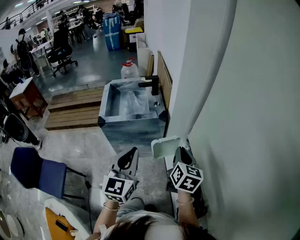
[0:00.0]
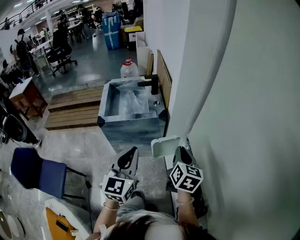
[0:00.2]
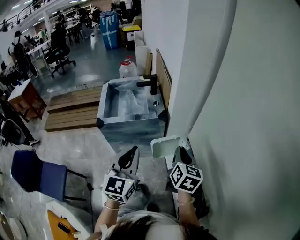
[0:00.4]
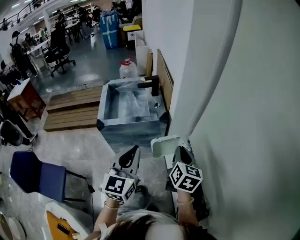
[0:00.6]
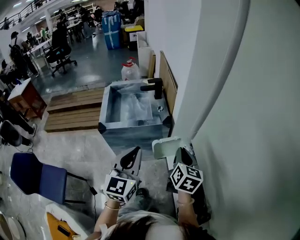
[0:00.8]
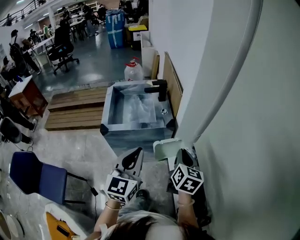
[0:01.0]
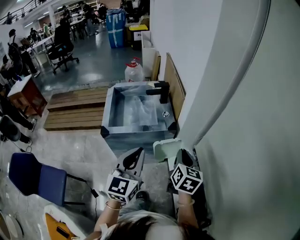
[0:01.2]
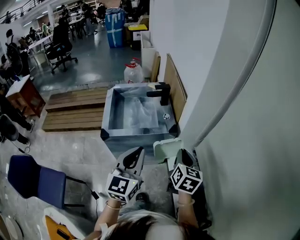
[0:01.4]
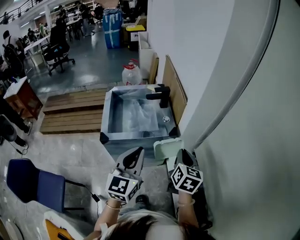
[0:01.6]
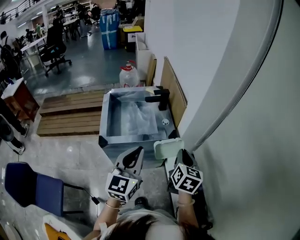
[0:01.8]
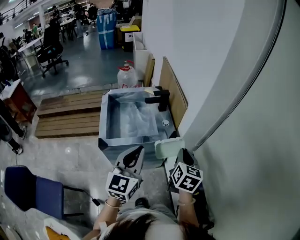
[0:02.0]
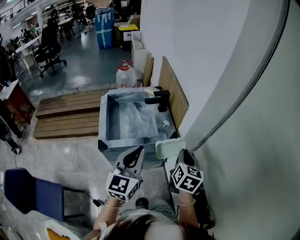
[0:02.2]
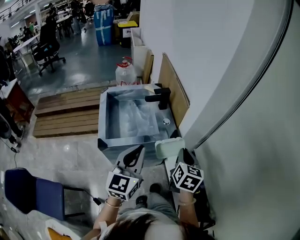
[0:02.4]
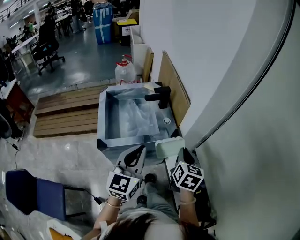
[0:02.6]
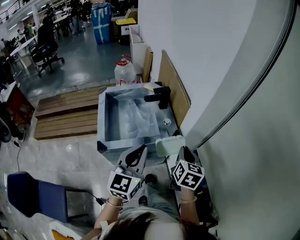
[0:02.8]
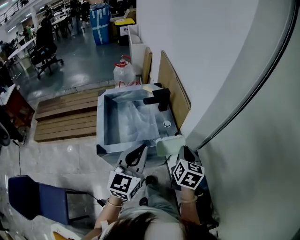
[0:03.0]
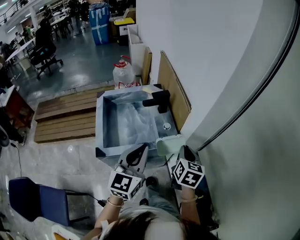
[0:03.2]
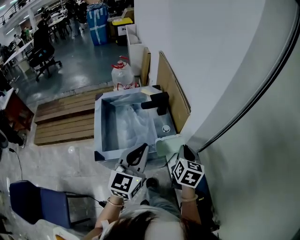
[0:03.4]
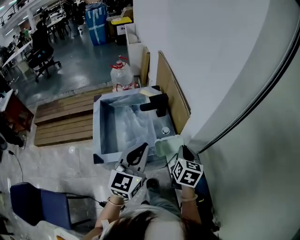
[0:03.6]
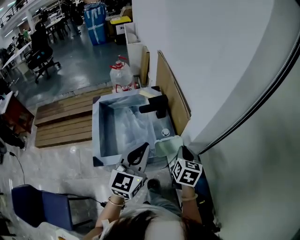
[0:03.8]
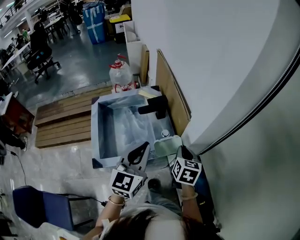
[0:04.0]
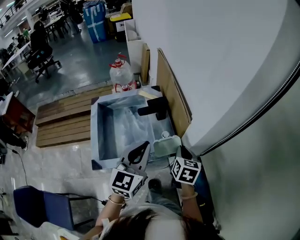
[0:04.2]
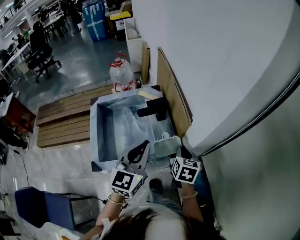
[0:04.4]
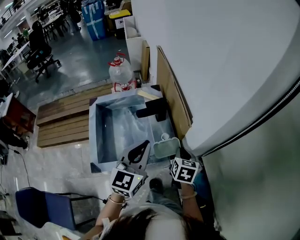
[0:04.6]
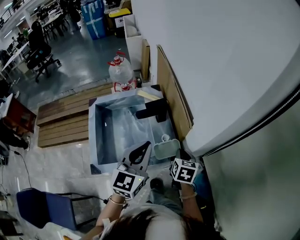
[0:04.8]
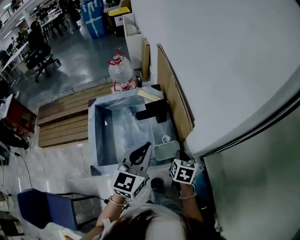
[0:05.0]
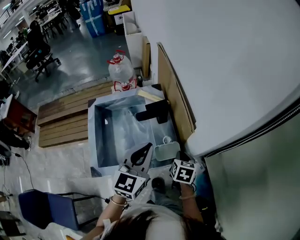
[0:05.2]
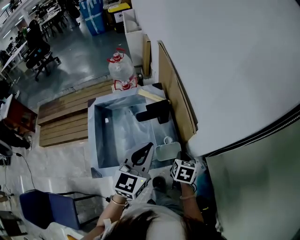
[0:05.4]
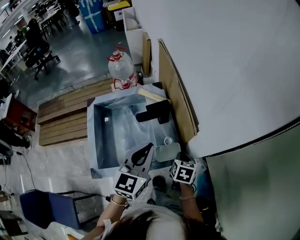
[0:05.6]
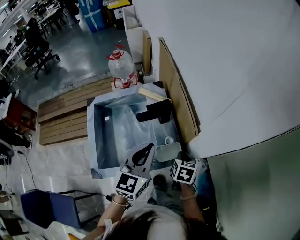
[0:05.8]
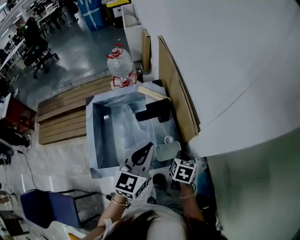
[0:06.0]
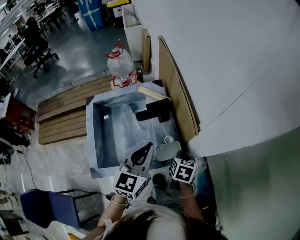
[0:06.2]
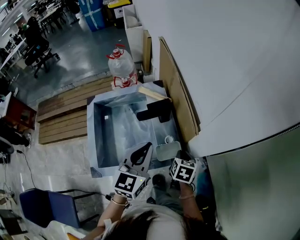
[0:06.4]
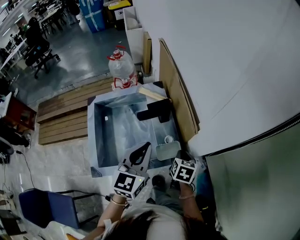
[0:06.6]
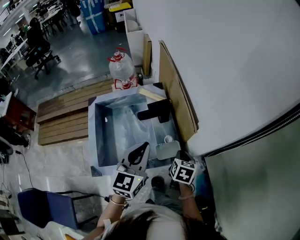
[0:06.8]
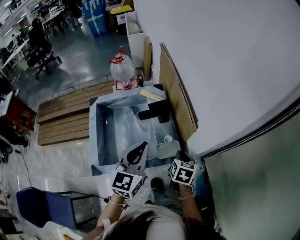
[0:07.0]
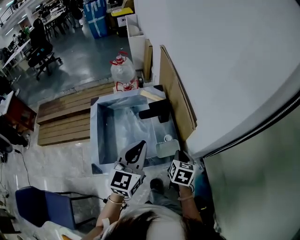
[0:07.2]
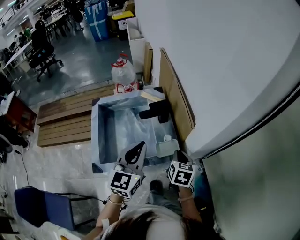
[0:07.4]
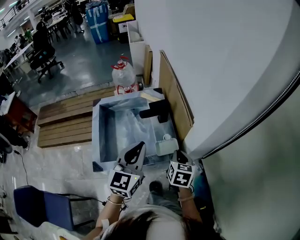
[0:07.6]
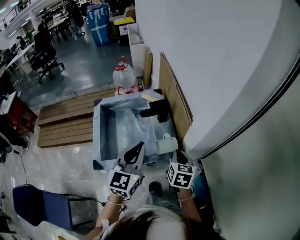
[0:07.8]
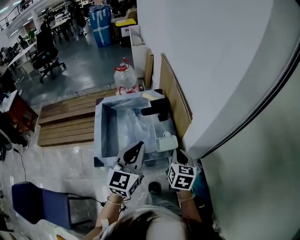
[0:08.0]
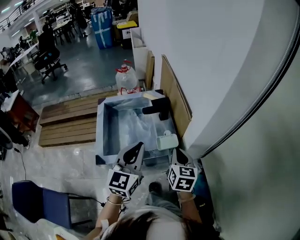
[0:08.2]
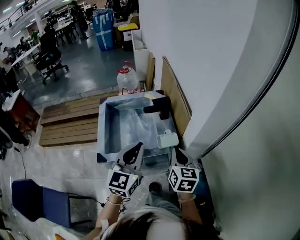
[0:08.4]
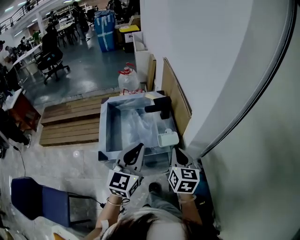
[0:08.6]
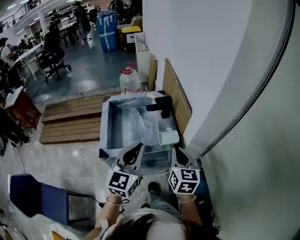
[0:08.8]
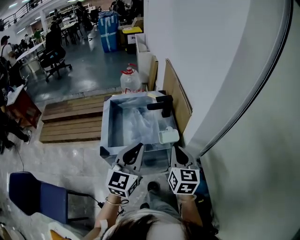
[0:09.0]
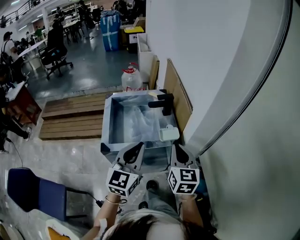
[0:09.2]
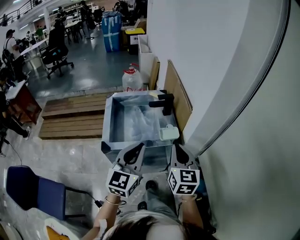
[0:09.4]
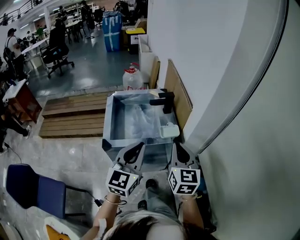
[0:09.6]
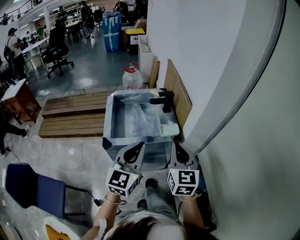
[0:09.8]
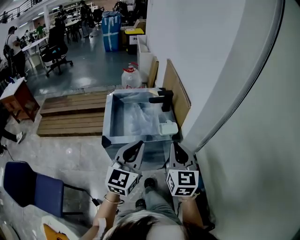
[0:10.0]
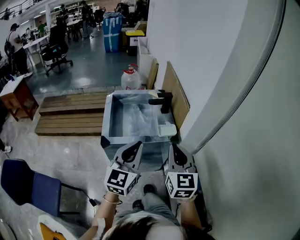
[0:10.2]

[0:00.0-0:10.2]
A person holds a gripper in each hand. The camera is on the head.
0:00.0 to 0:01.4: Both grippers move forward and to the left, approximately 15 cm.
0:01.4 to 0:03.0: The right gripper moves forward, roughly 10 cm. Meanwhile the left gripper moves forward and to the left, about 15 cm.
0:03.0 to 0:04.4: The right gripper goes approximately 15 cm forward and downward; the left gripper goes approximately 15 cm forward.
0:04.4 to 0:05.8: The left gripper travels forward and downward by approximately 10 cm. Meanwhile the right gripper heads downward, covering some 10 cm.
0:05.8 to 0:07.2: The left gripper moves some 5 cm, while the right gripper shifts approximately 5 cm upward.
0:07.2 to 0:08.8: The right gripper is displaced upward and backward by approximately 20 cm, and turns by about 30 degrees. The left gripper travels backward by about 15 cm.
0:08.8 to 0:10.2: The left gripper shifts some 10 cm backward. Meanwhile the right gripper moves backward and upward, some 10 cm.

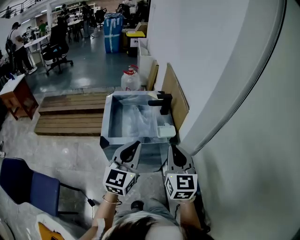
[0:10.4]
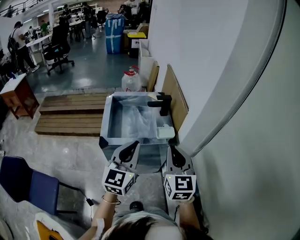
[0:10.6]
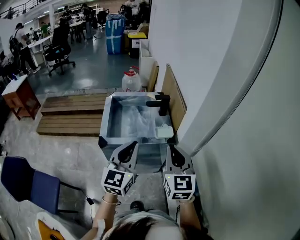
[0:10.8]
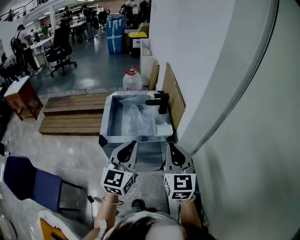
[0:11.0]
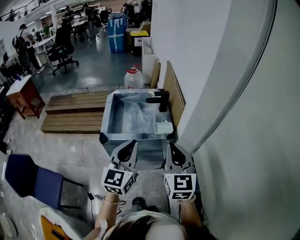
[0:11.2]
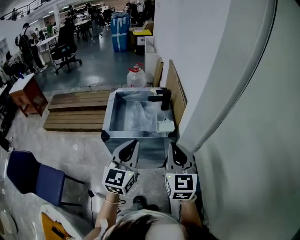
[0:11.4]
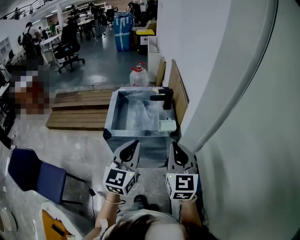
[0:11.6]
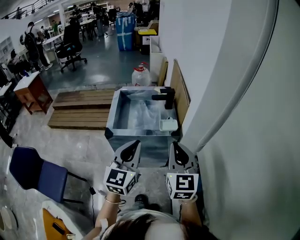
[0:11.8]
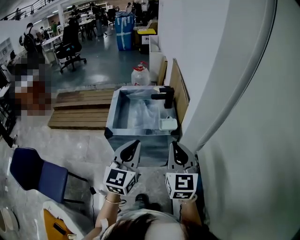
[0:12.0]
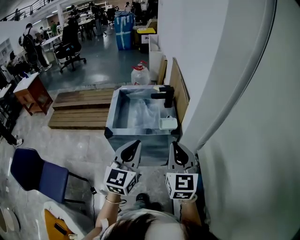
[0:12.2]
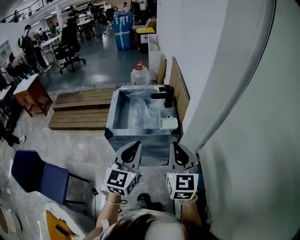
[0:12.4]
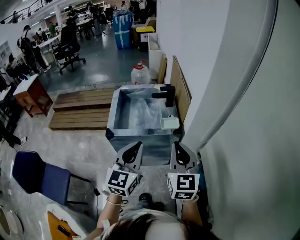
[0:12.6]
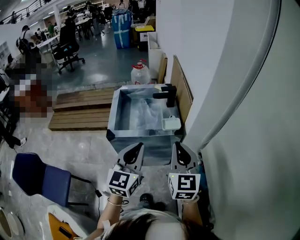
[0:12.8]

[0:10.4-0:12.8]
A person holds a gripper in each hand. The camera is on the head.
0:10.4 to 0:11.6: The left gripper moves roughly 5 cm; the right gripper ends up approximately 5 cm from where it was.
0:11.6 to 0:12.8: The grippers make only small movements.

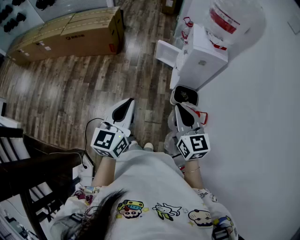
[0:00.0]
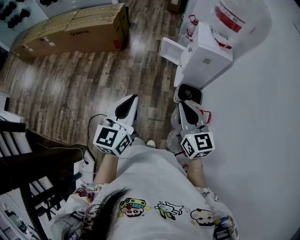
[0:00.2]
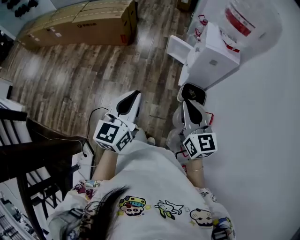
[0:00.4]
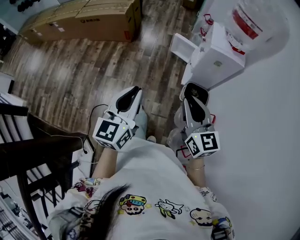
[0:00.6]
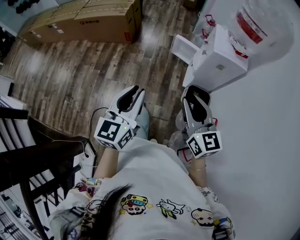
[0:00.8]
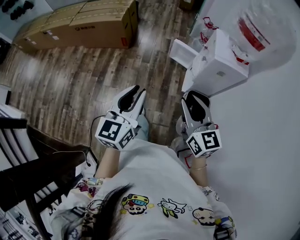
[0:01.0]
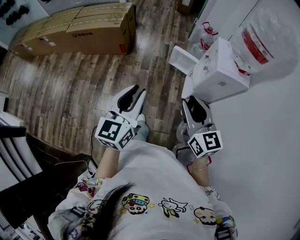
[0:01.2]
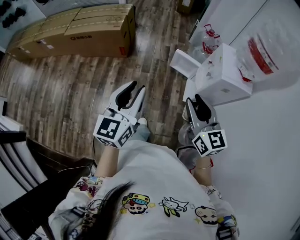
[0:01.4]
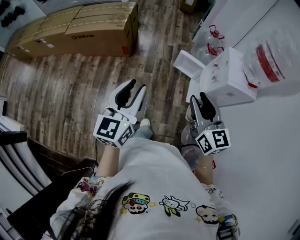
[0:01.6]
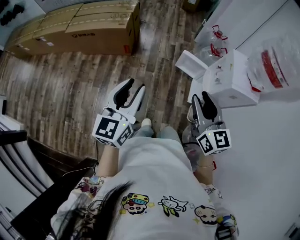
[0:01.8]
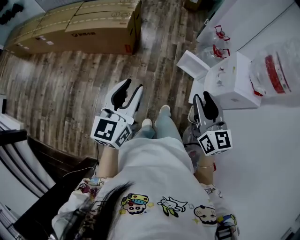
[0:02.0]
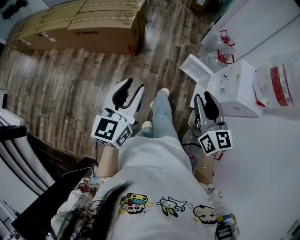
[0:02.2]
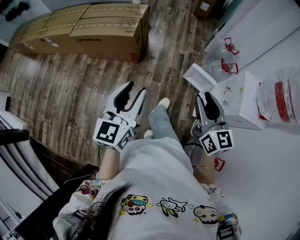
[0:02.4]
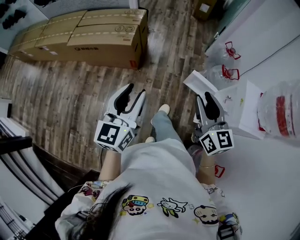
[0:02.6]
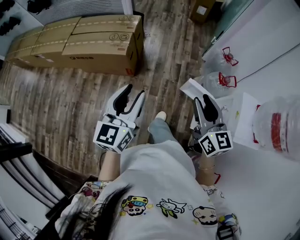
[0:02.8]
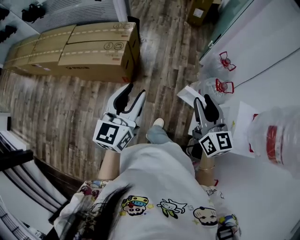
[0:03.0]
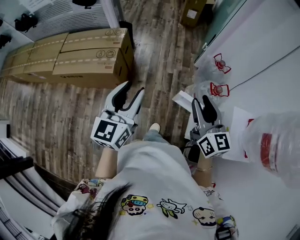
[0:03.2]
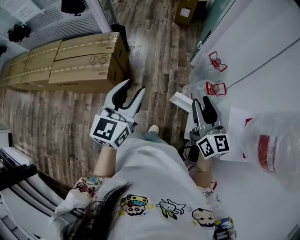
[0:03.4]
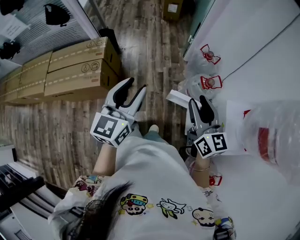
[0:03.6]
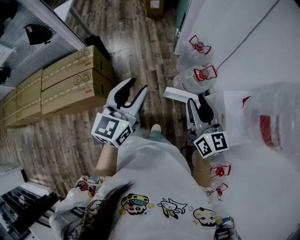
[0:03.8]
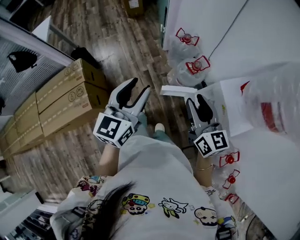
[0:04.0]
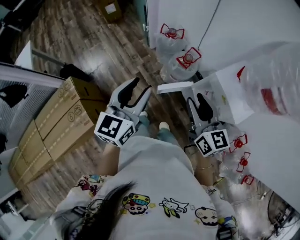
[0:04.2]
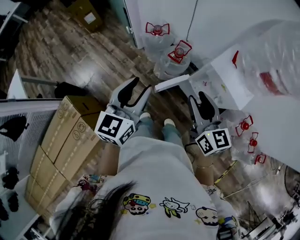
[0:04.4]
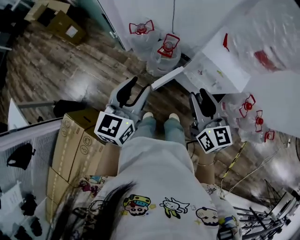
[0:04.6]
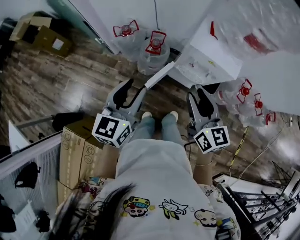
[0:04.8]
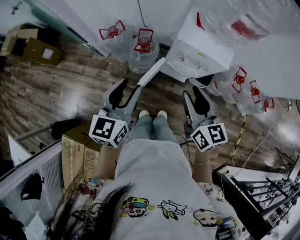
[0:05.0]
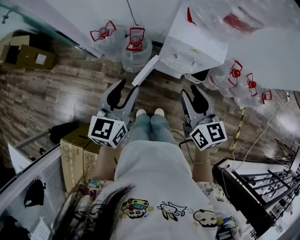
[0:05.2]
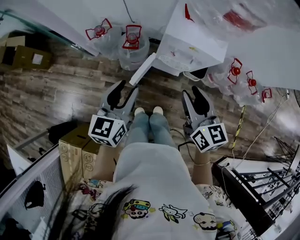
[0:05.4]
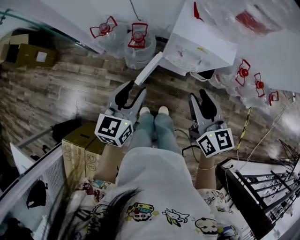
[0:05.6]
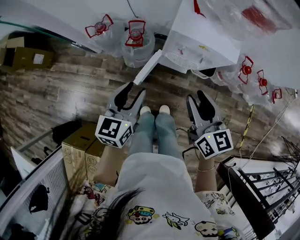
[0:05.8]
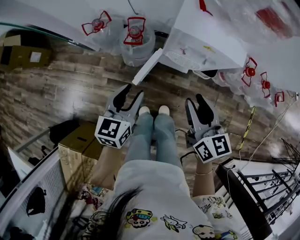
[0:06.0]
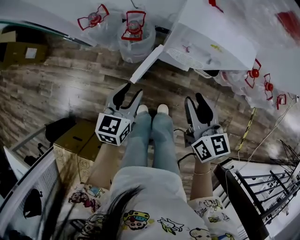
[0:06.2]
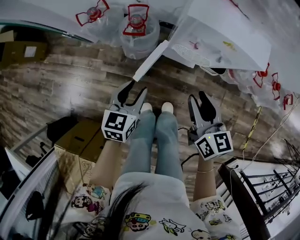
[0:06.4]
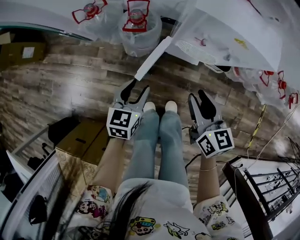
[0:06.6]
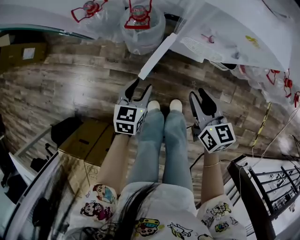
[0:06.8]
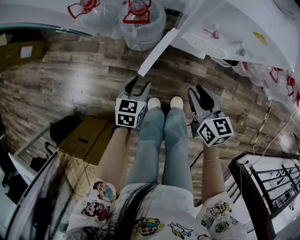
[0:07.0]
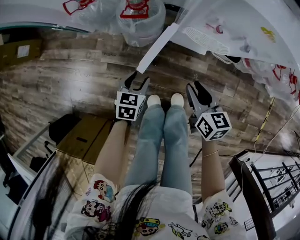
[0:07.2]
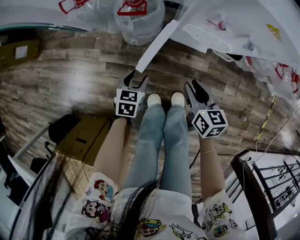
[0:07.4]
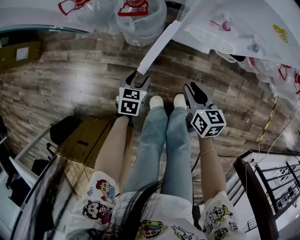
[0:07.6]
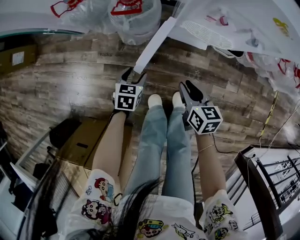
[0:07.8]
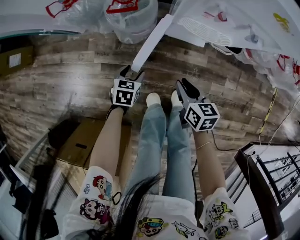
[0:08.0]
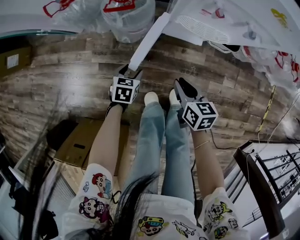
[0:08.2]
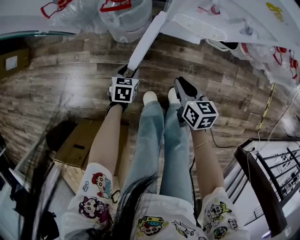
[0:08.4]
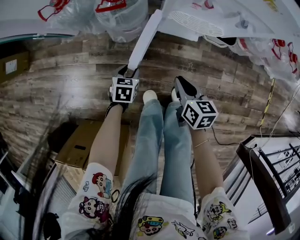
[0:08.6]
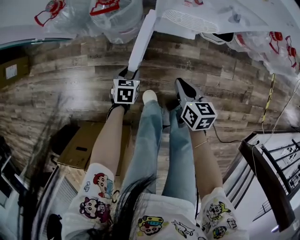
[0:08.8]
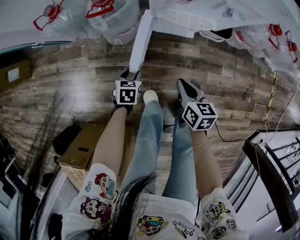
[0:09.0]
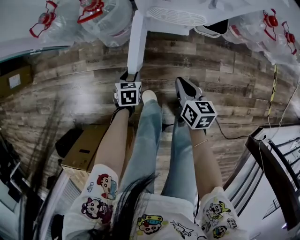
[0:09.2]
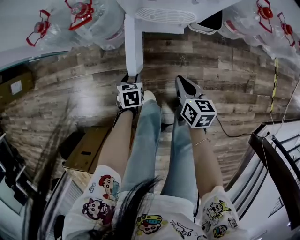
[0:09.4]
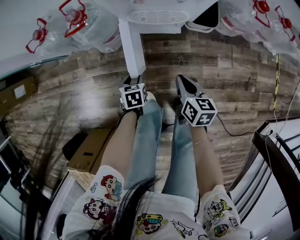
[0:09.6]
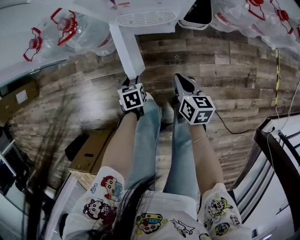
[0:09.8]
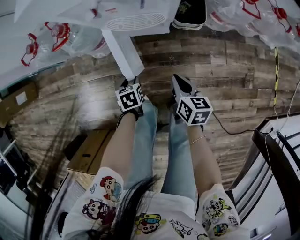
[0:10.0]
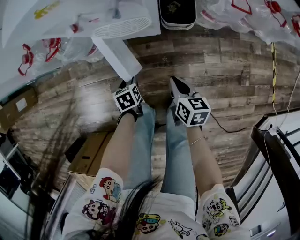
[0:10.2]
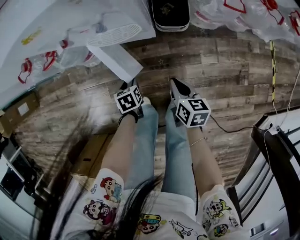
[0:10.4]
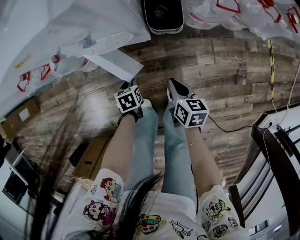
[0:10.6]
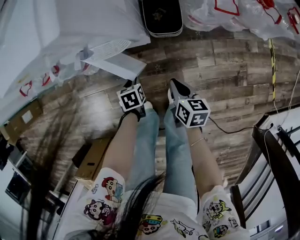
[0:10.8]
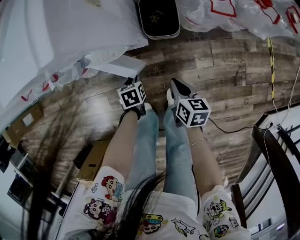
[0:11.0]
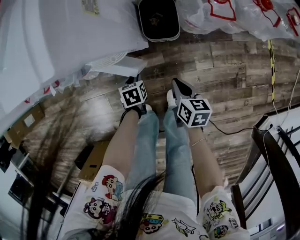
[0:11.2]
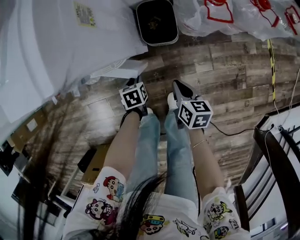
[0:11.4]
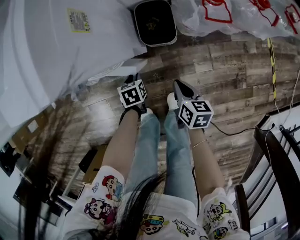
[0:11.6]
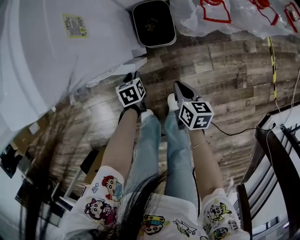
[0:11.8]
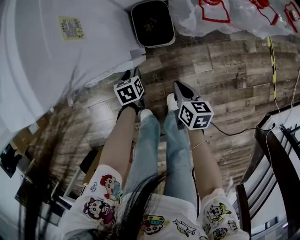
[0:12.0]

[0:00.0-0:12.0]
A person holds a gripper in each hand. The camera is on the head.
0:00.0 to 0:01.6: The left gripper goes approximately 30 cm forward and to the left, and opens its fingers. Meanwhile the right gripper goes some 30 cm forward, and opens up.
0:01.6 to 0:03.0: Both grippers travel together forward, approximately 35 cm.
0:03.0 to 0:04.4: The right gripper changes place by about 15 cm, and swivels some 50 degrees. The left gripper moves roughly 35 cm, and turns by about 60 degrees.
0:04.4 to 0:06.0: The right gripper moves downward, some 10 cm, and changes its angle by about 30 degrees, while the left gripper travels downward by roughly 20 cm, and changes its angle by approximately 30 degrees.
0:06.0 to 0:07.6: The two grippers go some 35 cm downward. The left gripper turns by approximately 30 degrees, while the right gripper swivels about 20 degrees.
0:07.6 to 0:09.0: The right gripper changes place by about 5 cm, and closes its fingers, while the left gripper heads downward, covering approximately 5 cm.
0:09.0 to 0:10.4: The grippers both shift to the right by approximately 20 cm.
0:10.4 to 0:12.0: The right gripper moves to the right and forward, some 10 cm. The left gripper is displaced forward and to the right by about 20 cm.
